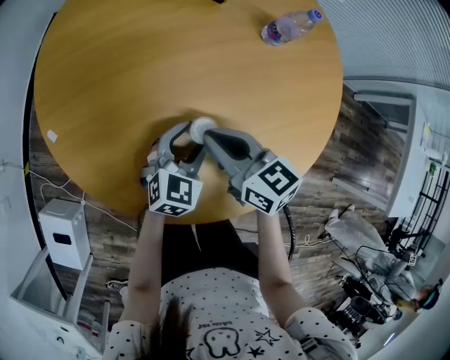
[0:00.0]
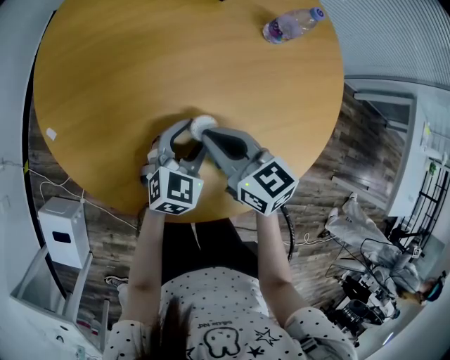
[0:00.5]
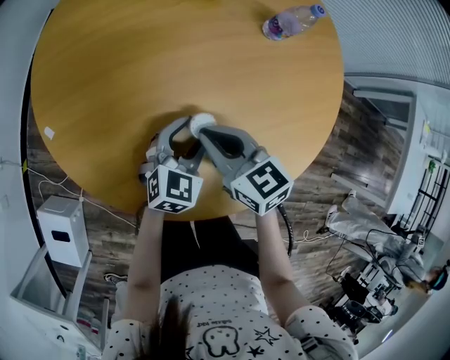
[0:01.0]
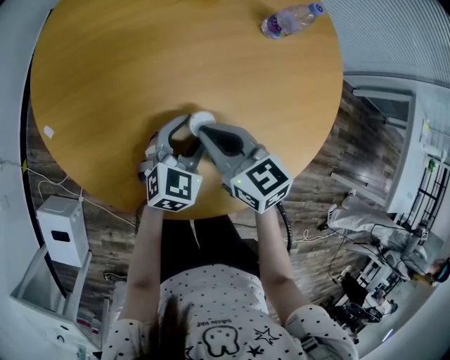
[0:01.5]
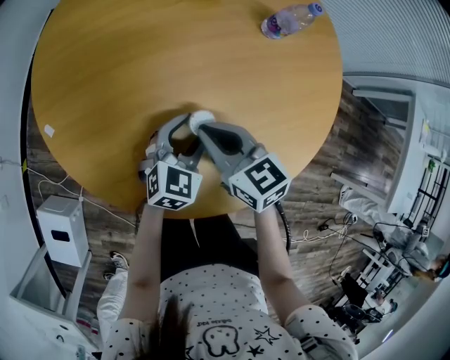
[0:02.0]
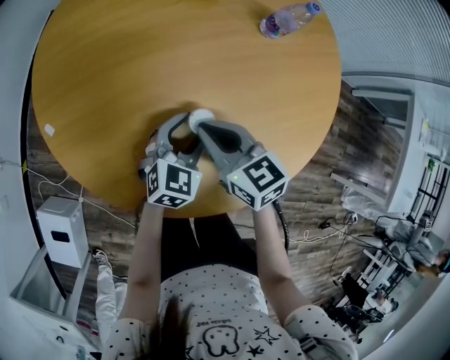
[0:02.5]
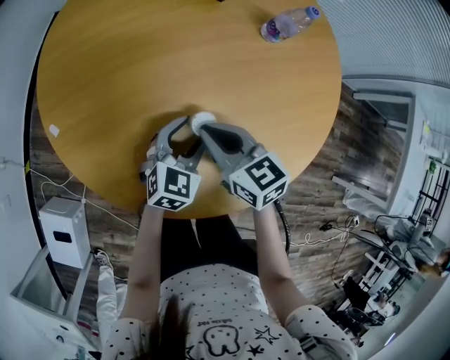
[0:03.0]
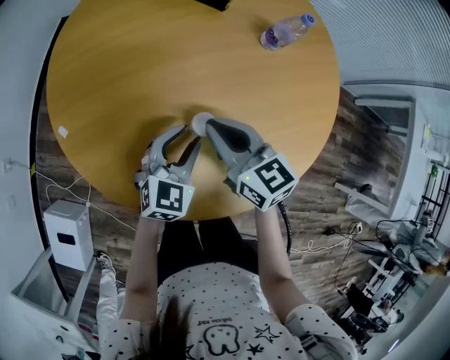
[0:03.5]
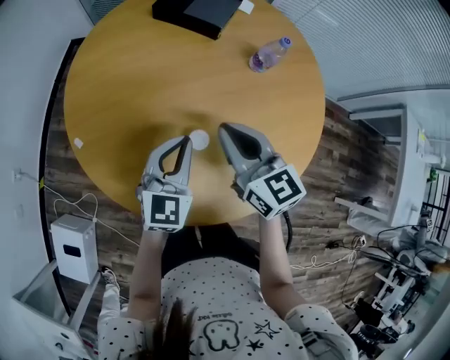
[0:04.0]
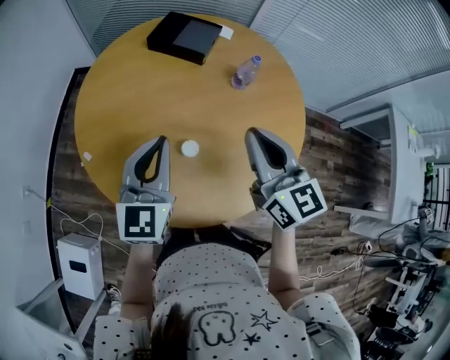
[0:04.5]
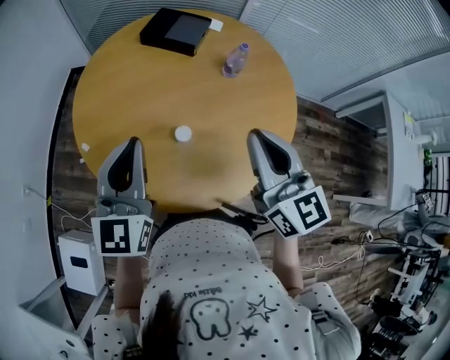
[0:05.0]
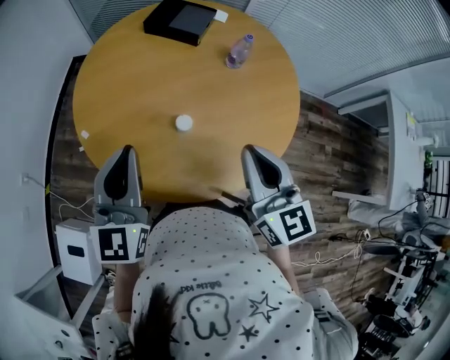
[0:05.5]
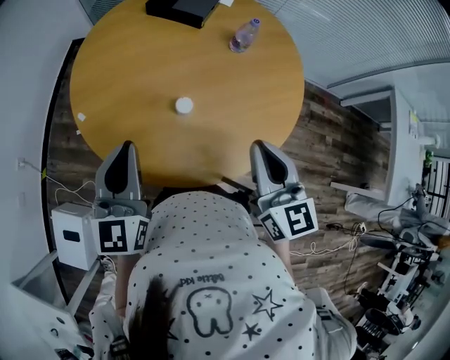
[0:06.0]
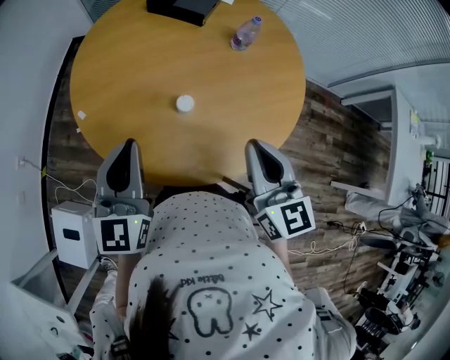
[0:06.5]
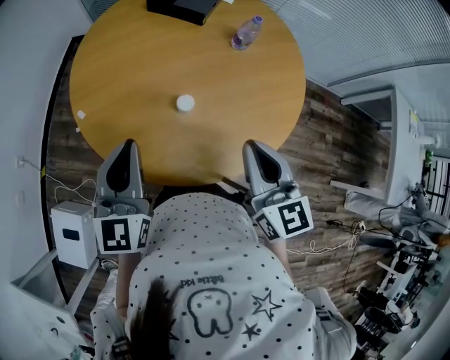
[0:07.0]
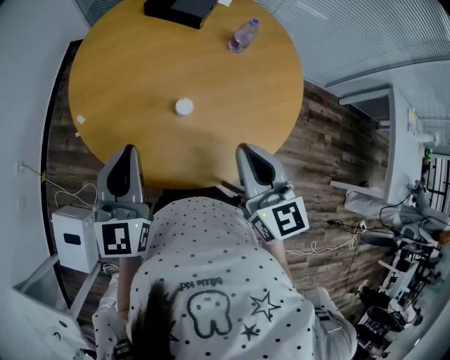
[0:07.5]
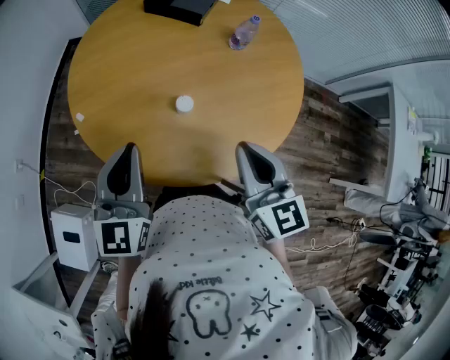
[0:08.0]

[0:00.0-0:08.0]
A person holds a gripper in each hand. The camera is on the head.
0:00.0 to 0:02.0: There are only small adjustments of the grippers.
0:02.0 to 0:04.0: The grippers both shift upward by approximately 15 cm. The left gripper closes up.
0:04.0 to 0:06.0: The left gripper moves upward, backward and to the left, about 20 cm, and swivels about 20 degrees; the right gripper shifts some 20 cm backward, upward and to the right.
0:06.0 to 0:08.0: There are only small adjustments of the grippers.

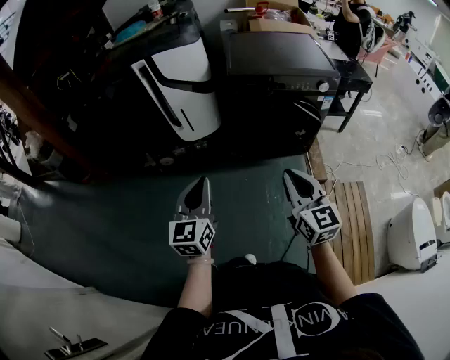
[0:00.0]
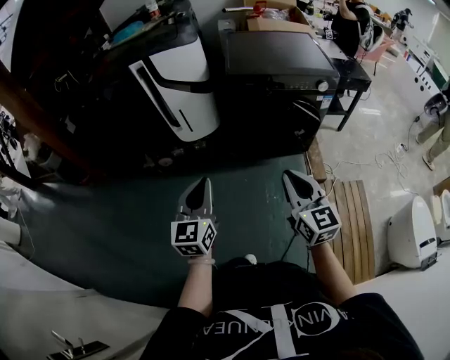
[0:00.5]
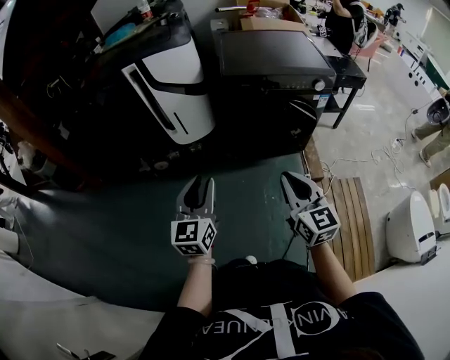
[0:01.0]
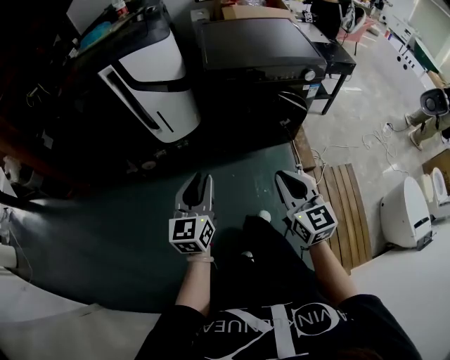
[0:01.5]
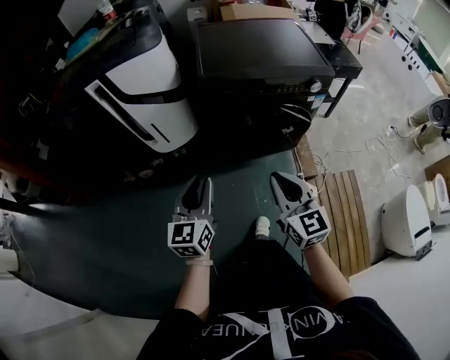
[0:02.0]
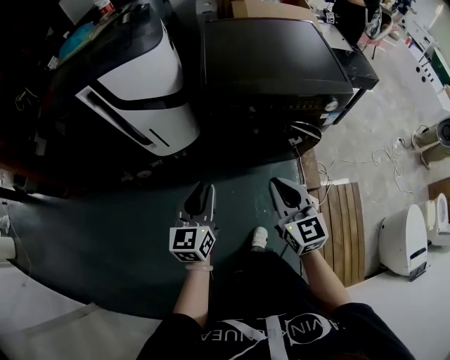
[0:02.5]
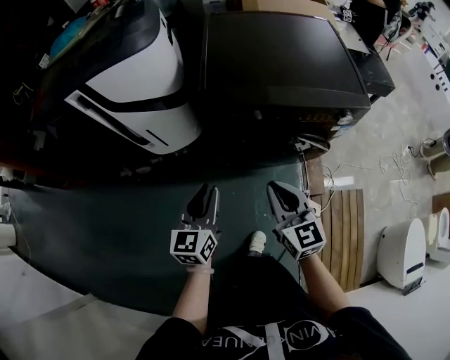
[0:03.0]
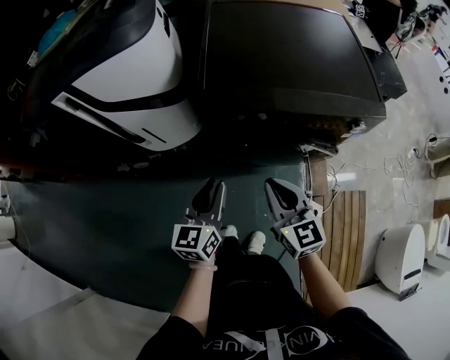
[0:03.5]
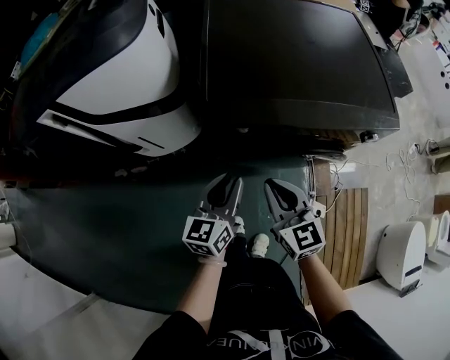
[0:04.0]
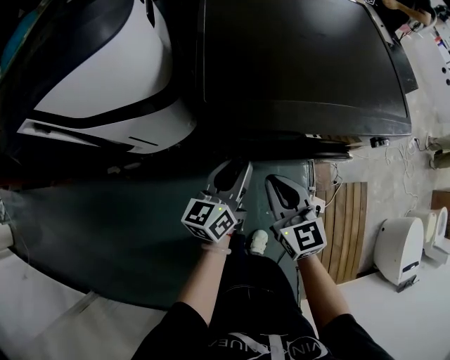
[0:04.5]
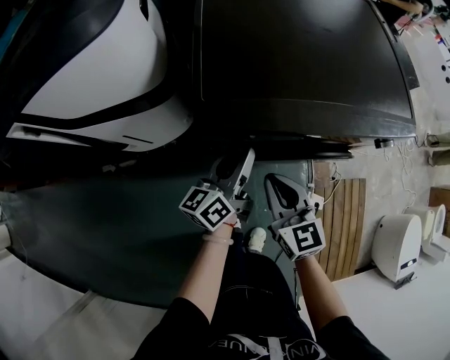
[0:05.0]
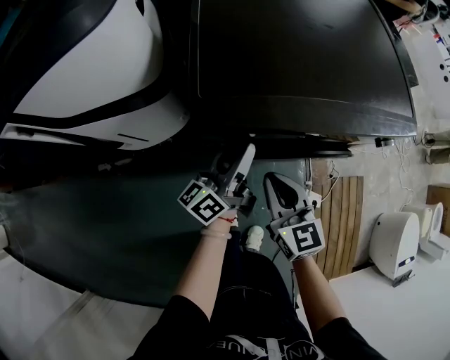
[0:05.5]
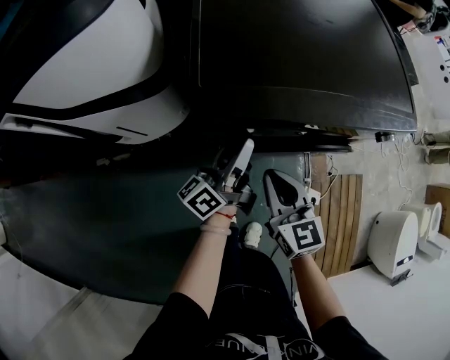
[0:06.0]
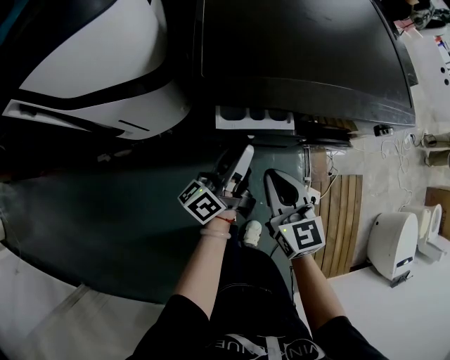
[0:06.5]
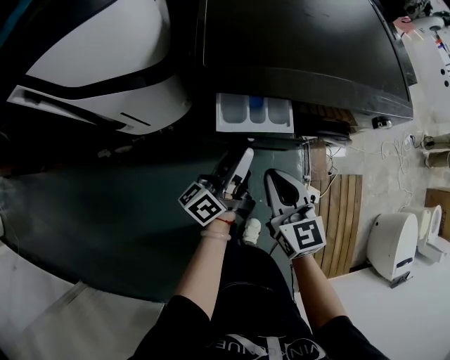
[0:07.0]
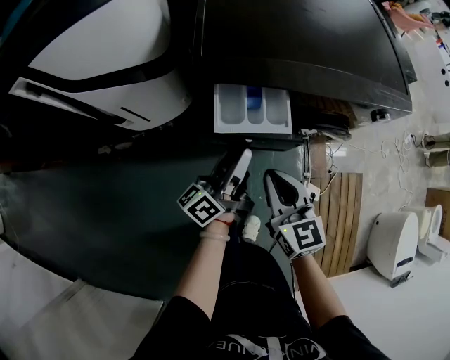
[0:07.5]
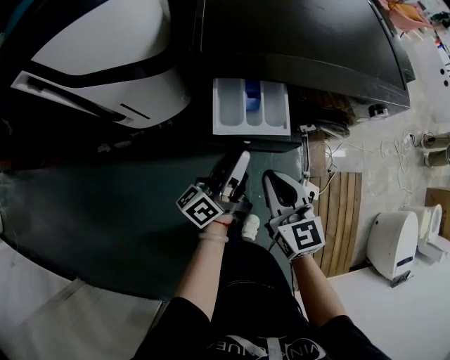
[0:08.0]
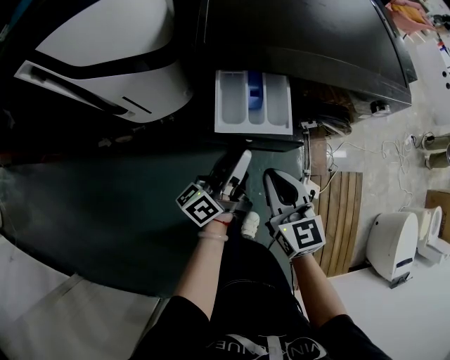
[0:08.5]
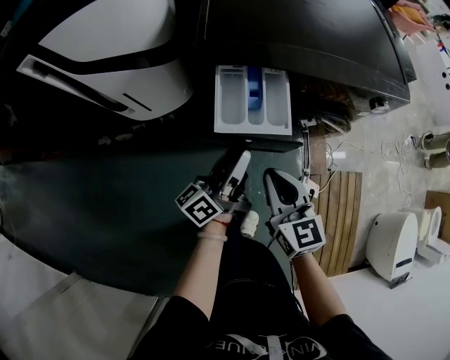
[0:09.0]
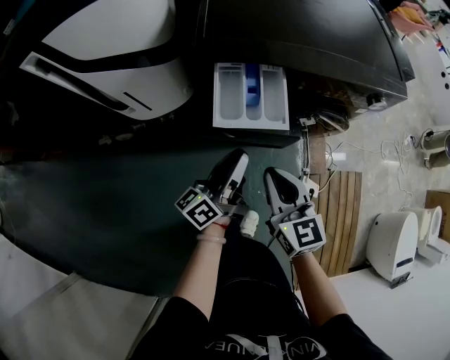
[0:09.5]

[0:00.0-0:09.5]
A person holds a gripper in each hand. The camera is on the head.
0:00.0 to 0:02.0: Both grippers move forward, approximately 15 cm. The left gripper opens up.
0:02.0 to 0:04.0: Both grippers move forward and downward, some 30 cm.
0:04.0 to 0:05.5: The left gripper goes roughly 10 cm forward, and changes its angle by roughly 40 degrees, while the right gripper moves downward, roughly 5 cm.
0:05.5 to 0:07.5: The grippers both shift backward by about 10 cm.
0:07.5 to 0:09.5: Both grippers travel together backward, some 5 cm.

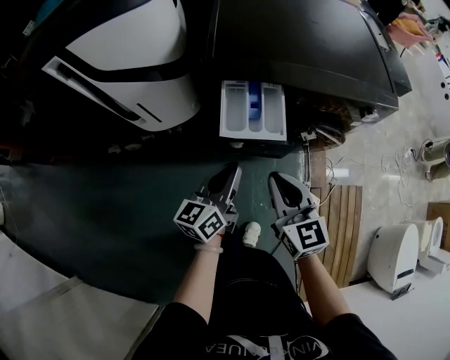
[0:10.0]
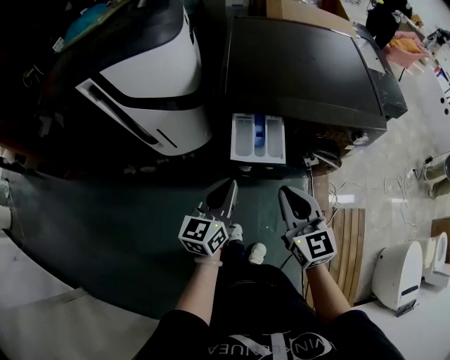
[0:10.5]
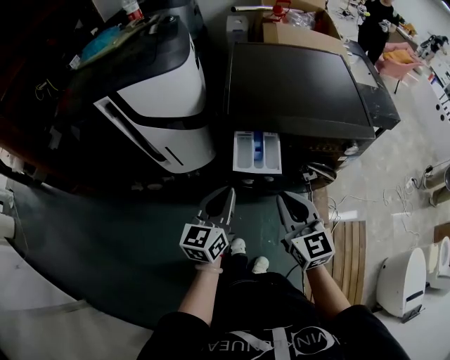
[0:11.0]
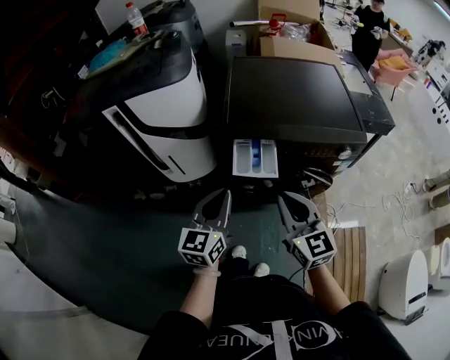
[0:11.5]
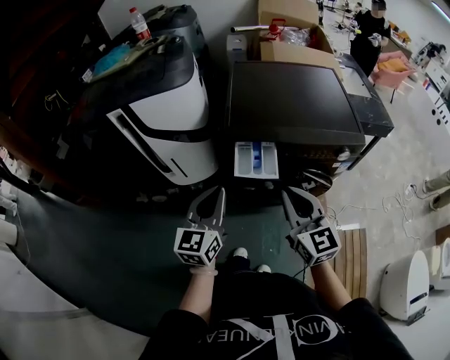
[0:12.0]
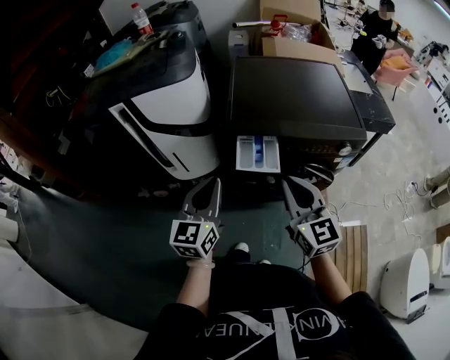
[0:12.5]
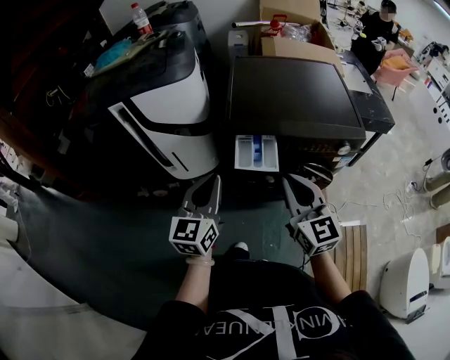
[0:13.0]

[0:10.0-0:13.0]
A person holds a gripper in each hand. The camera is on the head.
0:10.0 to 0:11.5: Both grippers travel together upward, about 15 cm. The left gripper swivels about 30 degrees.
0:11.5 to 0:13.0: The left gripper changes place by some 5 cm.

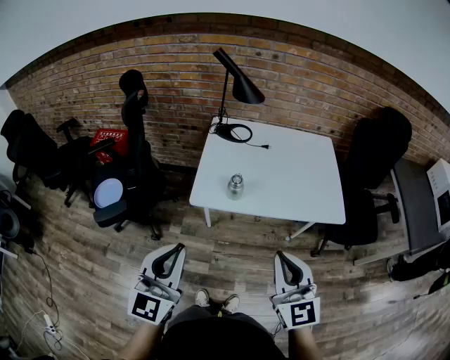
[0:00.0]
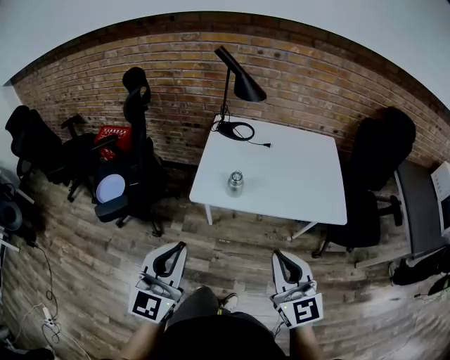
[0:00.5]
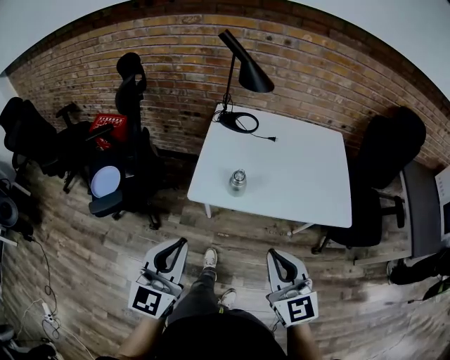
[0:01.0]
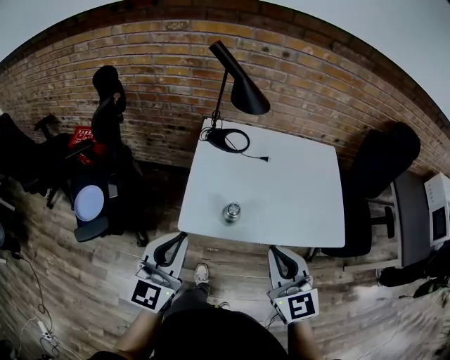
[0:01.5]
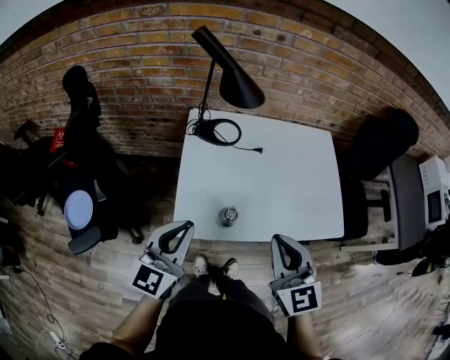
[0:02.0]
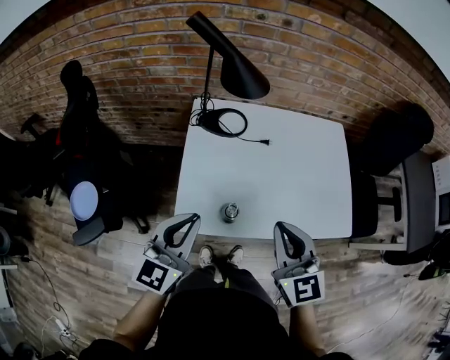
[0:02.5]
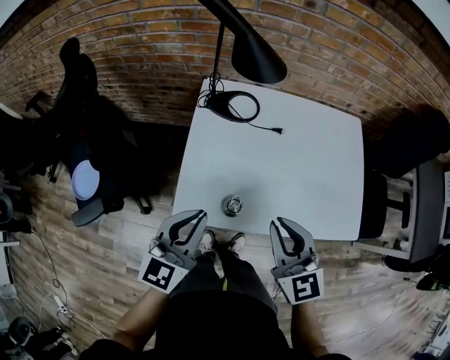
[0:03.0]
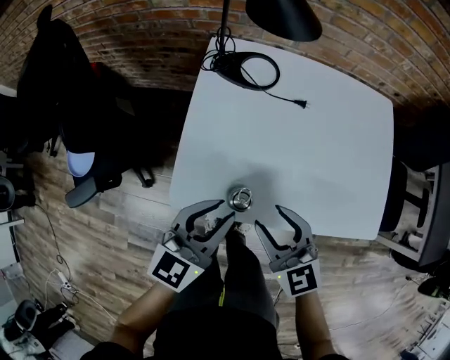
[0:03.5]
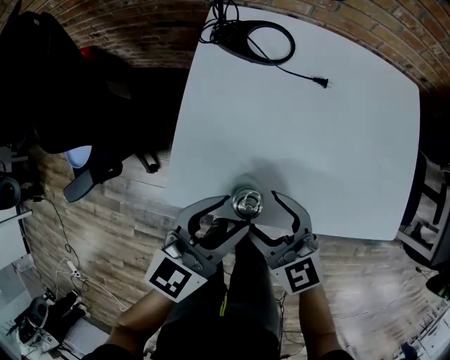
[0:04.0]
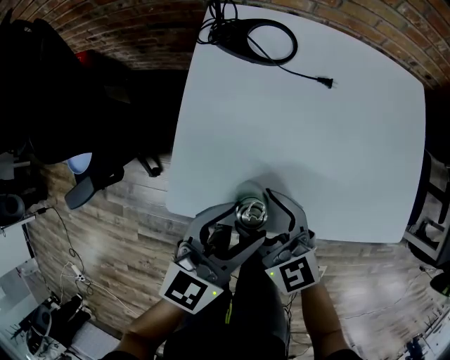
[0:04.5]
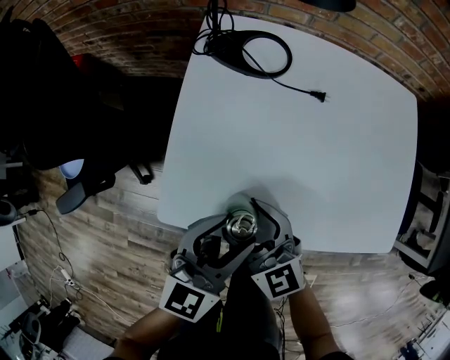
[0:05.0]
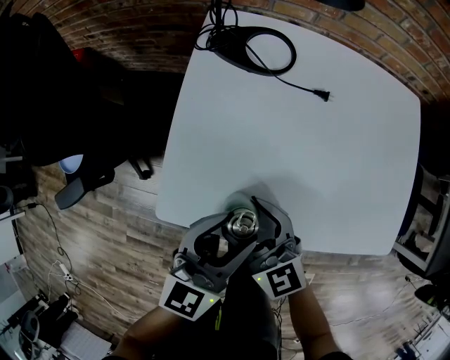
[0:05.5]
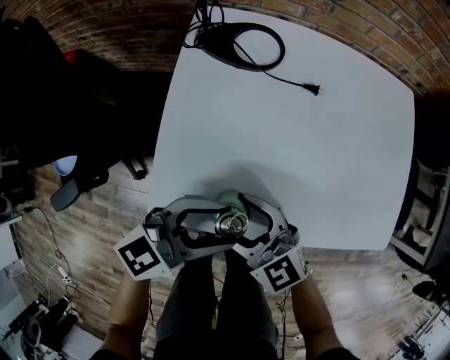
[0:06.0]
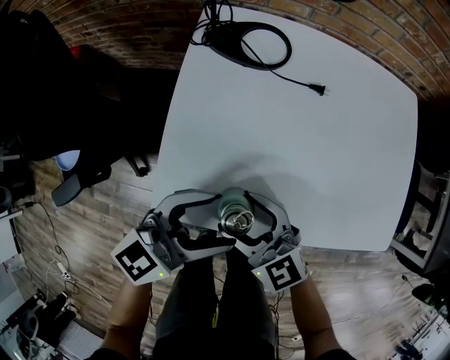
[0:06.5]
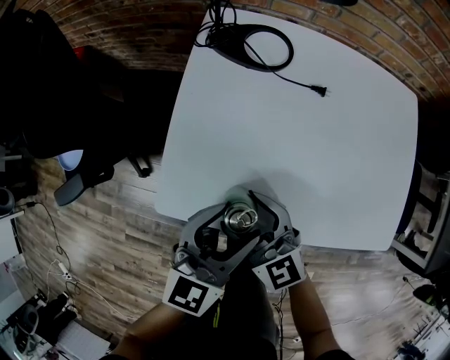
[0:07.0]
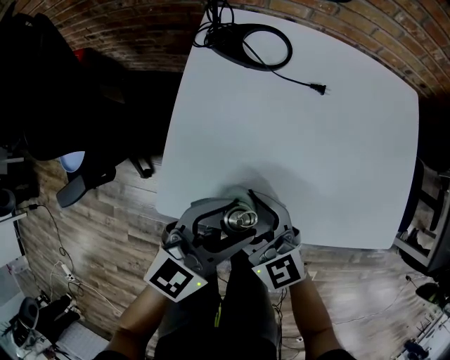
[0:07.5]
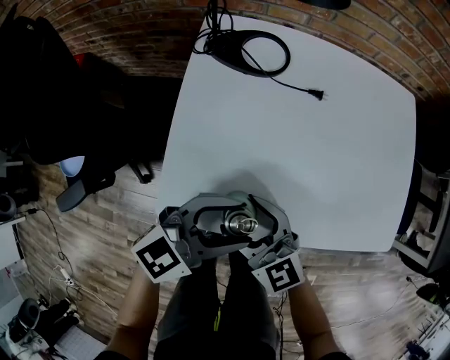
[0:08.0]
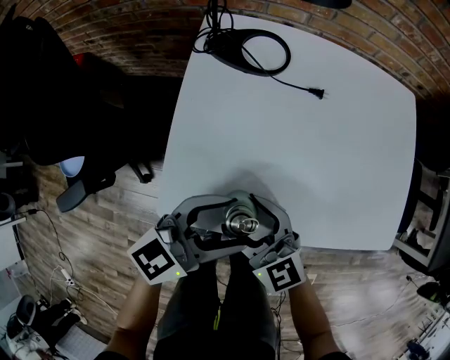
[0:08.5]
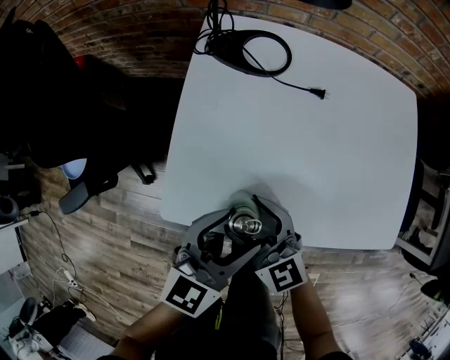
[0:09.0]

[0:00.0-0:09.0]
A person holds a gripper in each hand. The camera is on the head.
0:00.0 to 0:02.0: The grippers both shift forward by some 25 cm.
0:02.0 to 0:04.5: The right gripper shifts some 25 cm downward, rotates some 30 degrees, and opens its fingers; the left gripper heads downward and to the right, covering some 20 cm, and opens.
